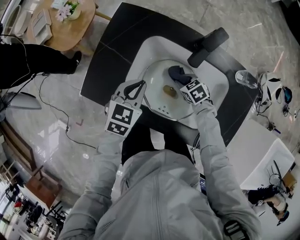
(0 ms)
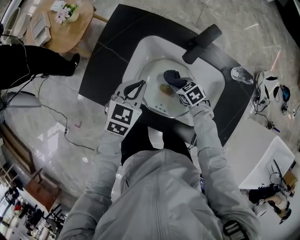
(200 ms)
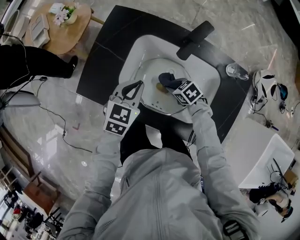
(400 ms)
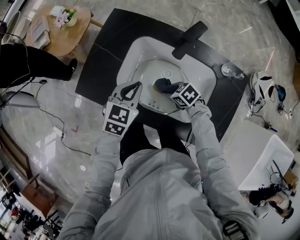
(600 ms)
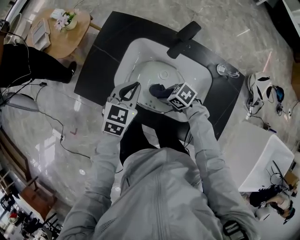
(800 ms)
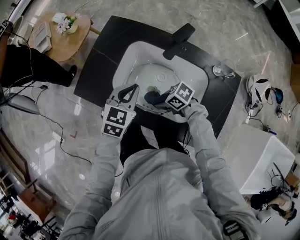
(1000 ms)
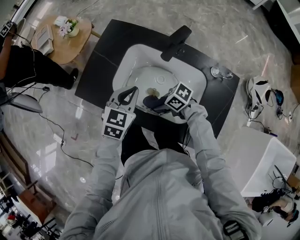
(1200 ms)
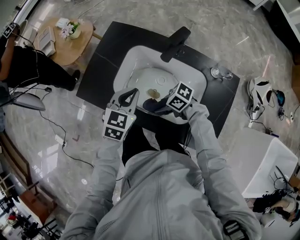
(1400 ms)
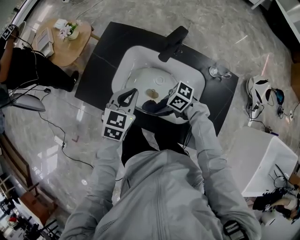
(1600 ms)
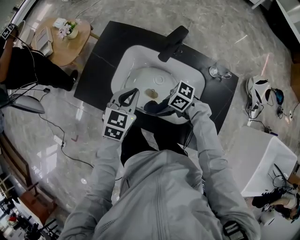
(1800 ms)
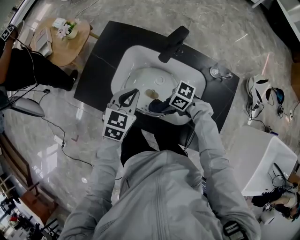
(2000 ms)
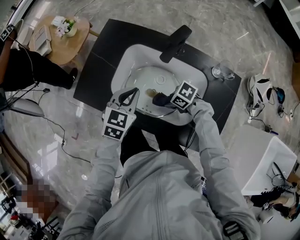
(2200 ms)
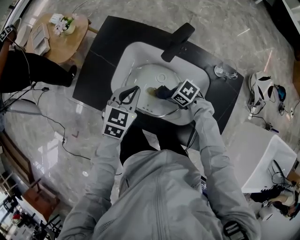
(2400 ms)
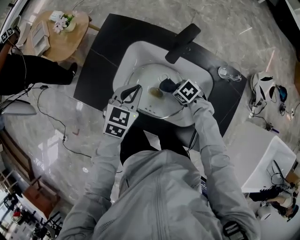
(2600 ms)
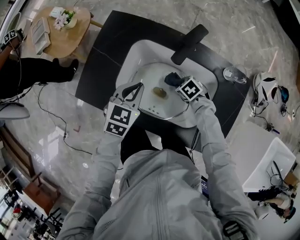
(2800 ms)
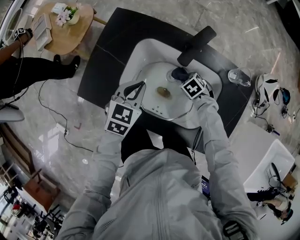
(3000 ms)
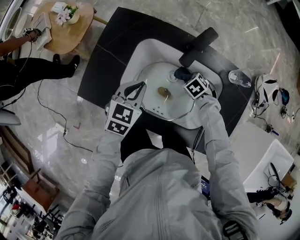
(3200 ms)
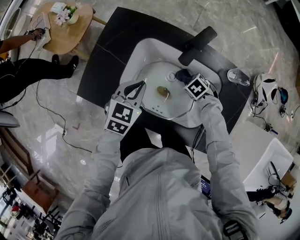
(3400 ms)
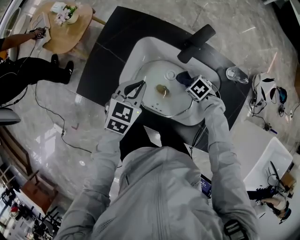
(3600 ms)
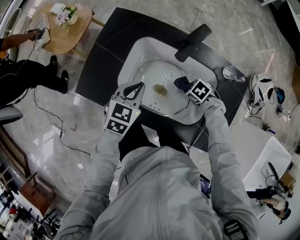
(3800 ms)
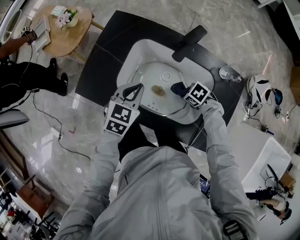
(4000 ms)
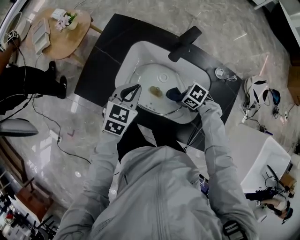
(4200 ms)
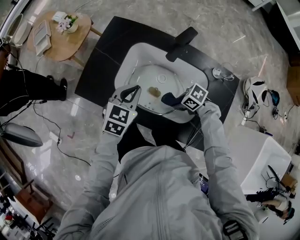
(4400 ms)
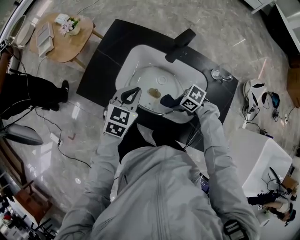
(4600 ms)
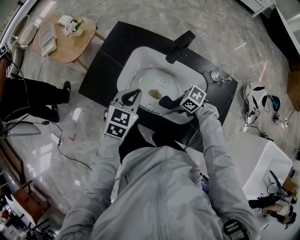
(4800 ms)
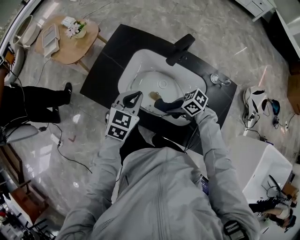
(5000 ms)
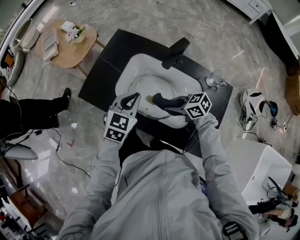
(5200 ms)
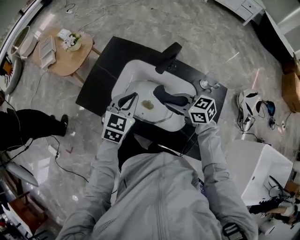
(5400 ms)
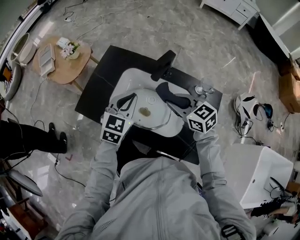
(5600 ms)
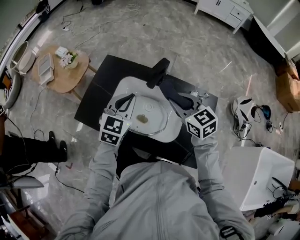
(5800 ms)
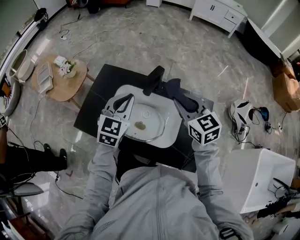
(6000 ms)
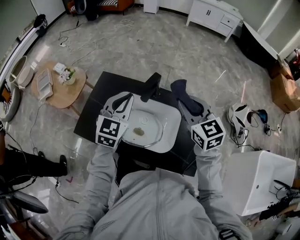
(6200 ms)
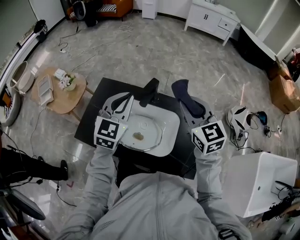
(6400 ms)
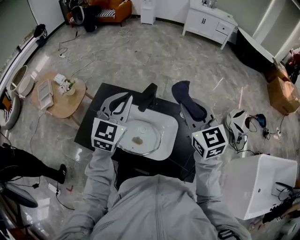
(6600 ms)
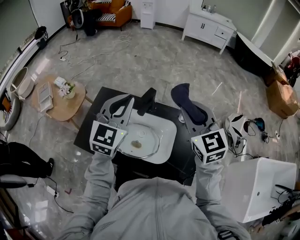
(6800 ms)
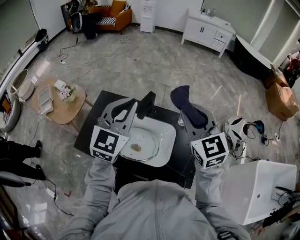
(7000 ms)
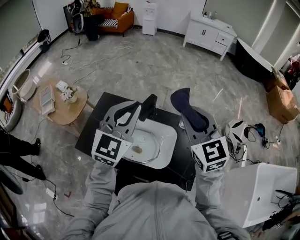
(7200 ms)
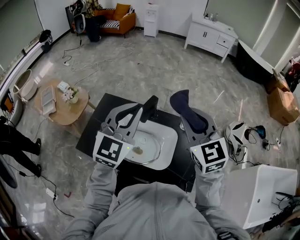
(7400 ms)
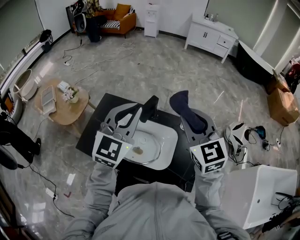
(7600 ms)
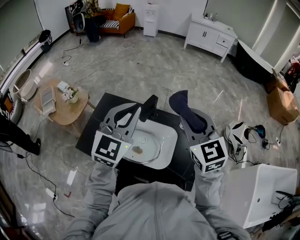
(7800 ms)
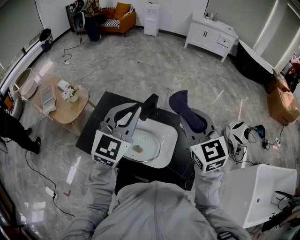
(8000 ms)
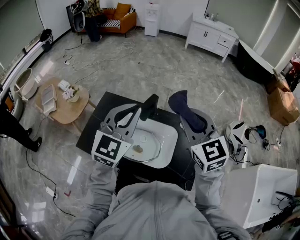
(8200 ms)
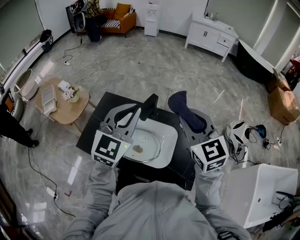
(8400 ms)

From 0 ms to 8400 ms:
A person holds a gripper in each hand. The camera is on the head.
From 0 ms to 1400 ms: The right gripper ends up approximately 20 cm from where it was, and changes its angle by about 40 degrees; the left gripper shifts by approximately 10 cm.
From 1400 ms to 2800 ms: The left gripper moves about 5 cm. The right gripper ends up approximately 20 cm from where it was, and angles its fingers downward, by approximately 40 degrees.
From 2800 ms to 4200 ms: The right gripper changes place by approximately 10 cm, and turns by some 20 degrees.
From 4200 ms to 5600 ms: The left gripper shifts some 10 cm upward. The right gripper goes about 25 cm upward, and points its fingers roughly 40 degrees further upward.
From 5600 ms to 7000 ms: The left gripper shifts about 20 cm upward, and turns by about 30 degrees; the right gripper is displaced upward and to the right by about 25 cm, and changes its angle by some 40 degrees.
From 7000 ms to 8400 ms: The grippers make only small movements.

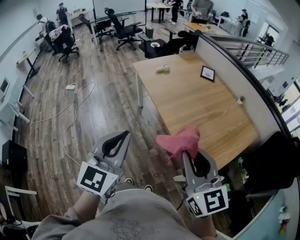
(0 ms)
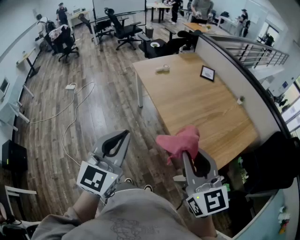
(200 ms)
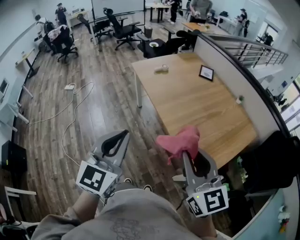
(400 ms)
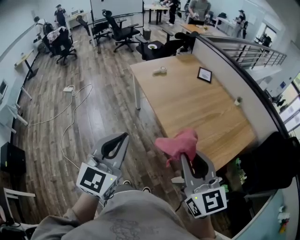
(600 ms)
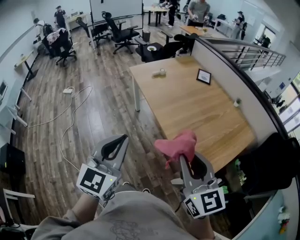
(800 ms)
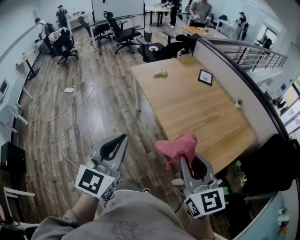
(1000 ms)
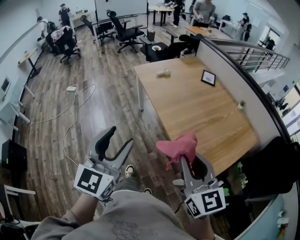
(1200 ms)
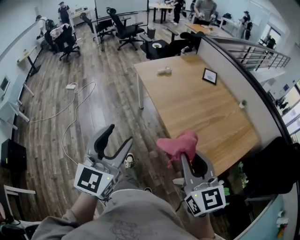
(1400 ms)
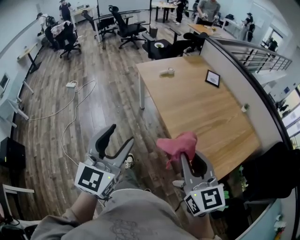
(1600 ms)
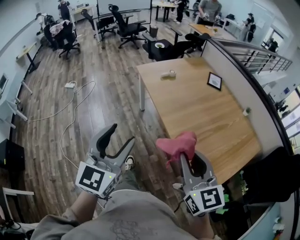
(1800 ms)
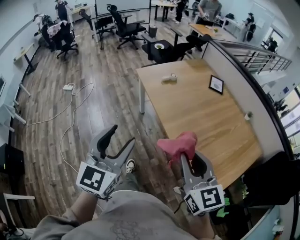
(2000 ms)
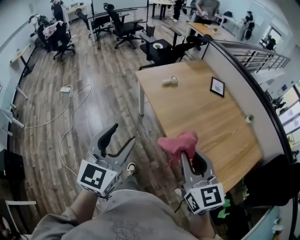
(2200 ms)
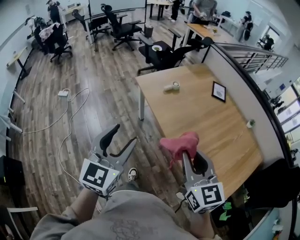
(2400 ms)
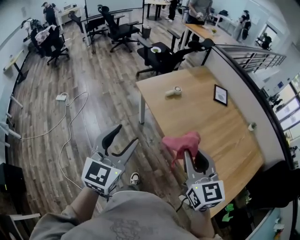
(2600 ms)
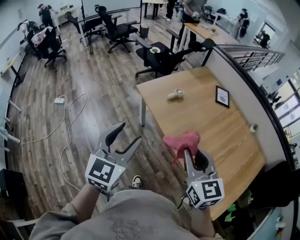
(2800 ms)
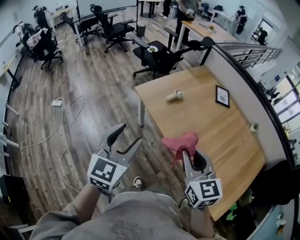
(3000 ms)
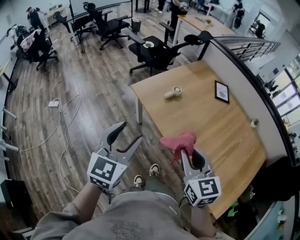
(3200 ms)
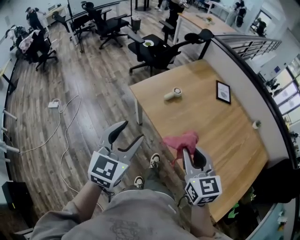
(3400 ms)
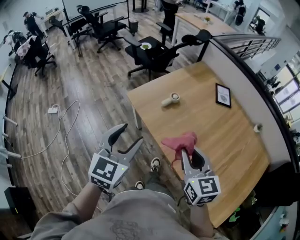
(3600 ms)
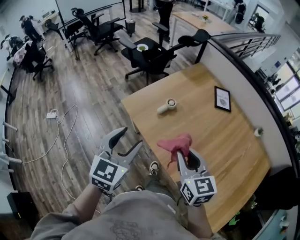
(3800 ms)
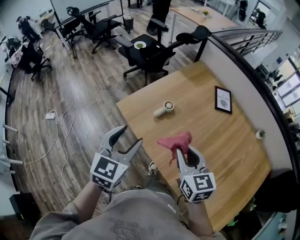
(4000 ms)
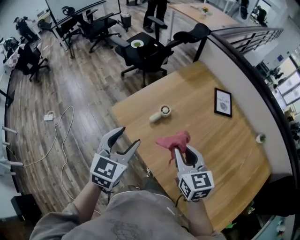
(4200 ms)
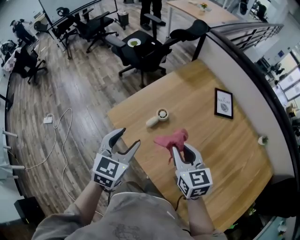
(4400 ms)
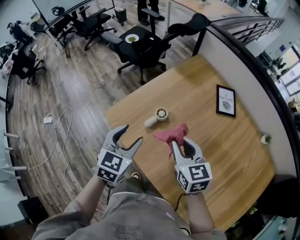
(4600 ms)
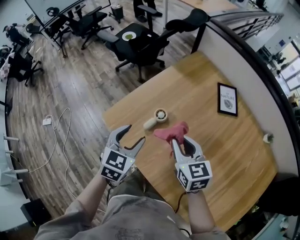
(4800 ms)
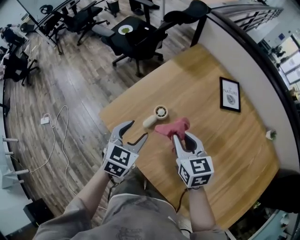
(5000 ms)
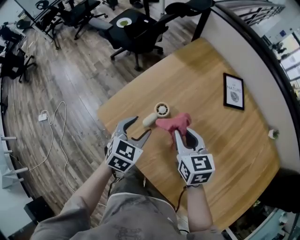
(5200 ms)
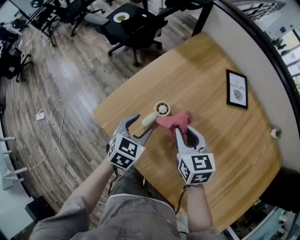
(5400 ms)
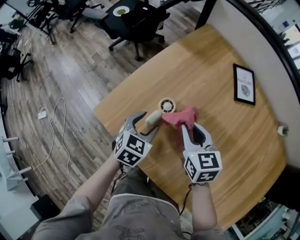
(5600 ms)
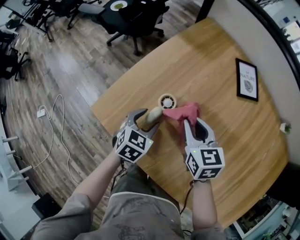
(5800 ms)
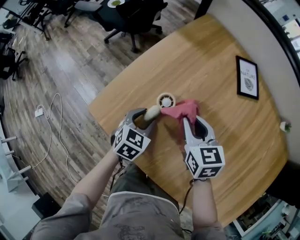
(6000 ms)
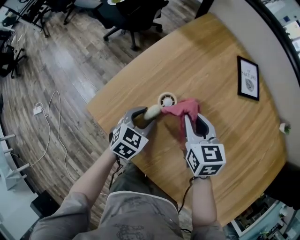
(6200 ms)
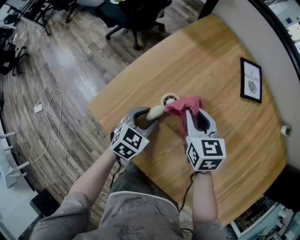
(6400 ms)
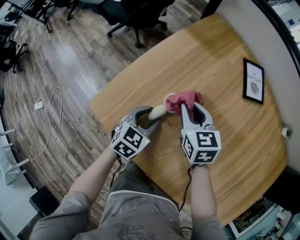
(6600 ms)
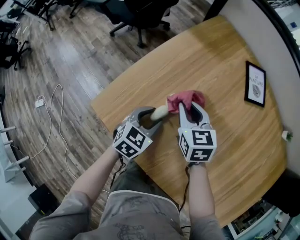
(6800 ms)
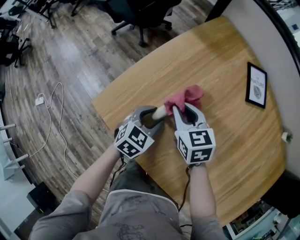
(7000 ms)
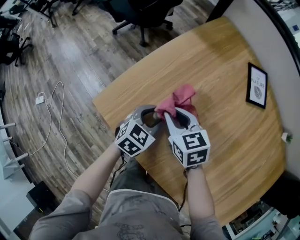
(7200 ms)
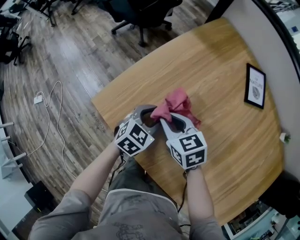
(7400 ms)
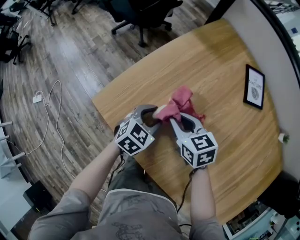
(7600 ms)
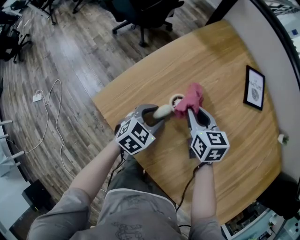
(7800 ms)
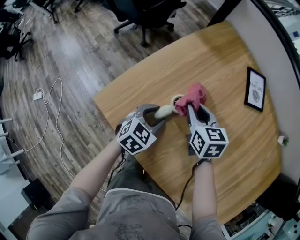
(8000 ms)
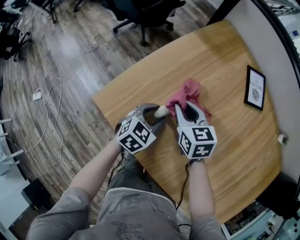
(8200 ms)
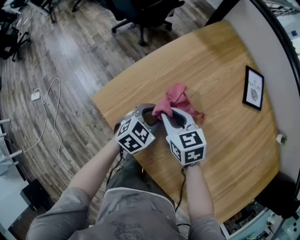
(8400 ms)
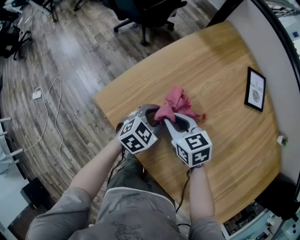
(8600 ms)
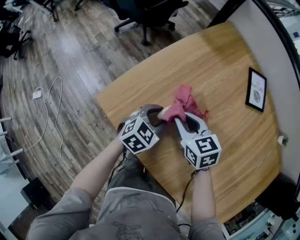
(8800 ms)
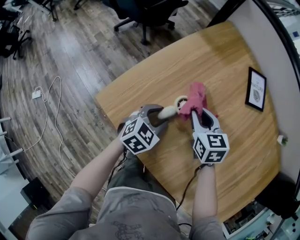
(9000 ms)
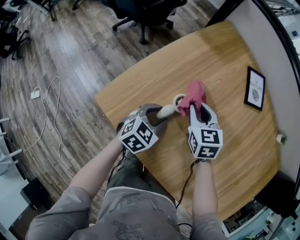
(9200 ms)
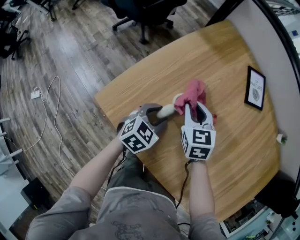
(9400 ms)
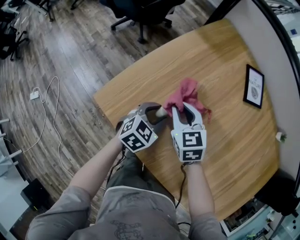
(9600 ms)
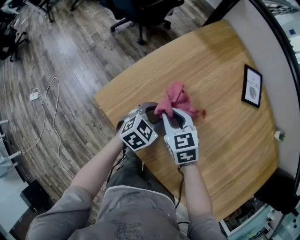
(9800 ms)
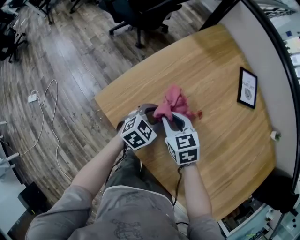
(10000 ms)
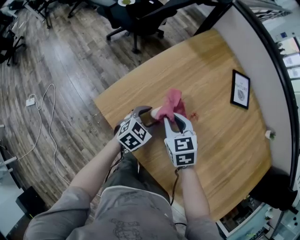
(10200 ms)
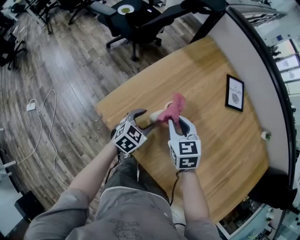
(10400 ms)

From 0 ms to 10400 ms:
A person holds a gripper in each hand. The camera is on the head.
From 0 ms to 1400 ms: The left gripper opens up.
From 1400 ms to 3000 ms: Both grippers are carried forward and to the left, some 40 cm.
From 3000 ms to 4400 ms: Both grippers move forward, approximately 35 cm.
From 4400 ms to 6000 ms: Both grippers travel together downward and forward, roughly 25 cm. The left gripper swivels about 20 degrees.
From 6000 ms to 7400 ms: The right gripper is displaced to the left and downward by roughly 10 cm, and rotates roughly 20 degrees.
From 7400 ms to 9000 ms: The right gripper moves left and right over roughly 10 cm, changing direction 2 times.
From 9000 ms to 10400 ms: The right gripper moves upward, roughly 5 cm.

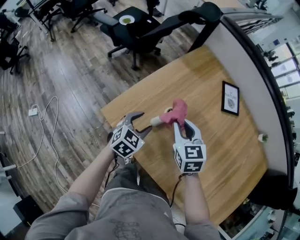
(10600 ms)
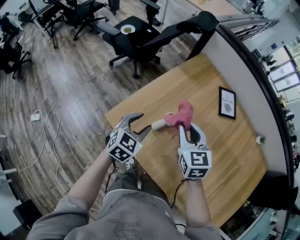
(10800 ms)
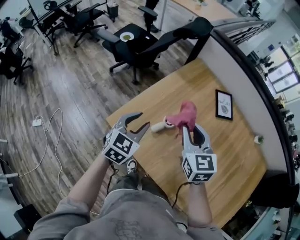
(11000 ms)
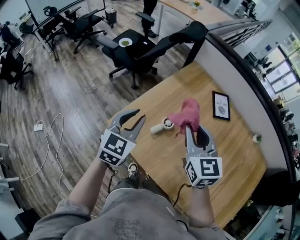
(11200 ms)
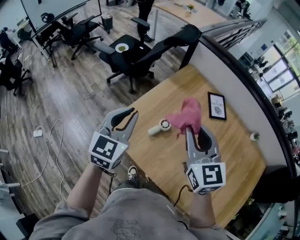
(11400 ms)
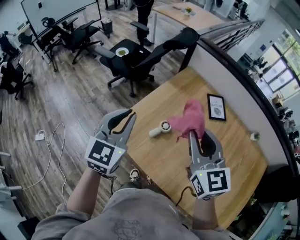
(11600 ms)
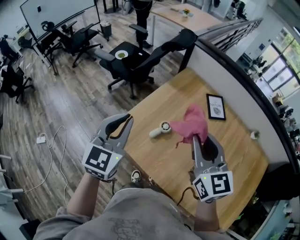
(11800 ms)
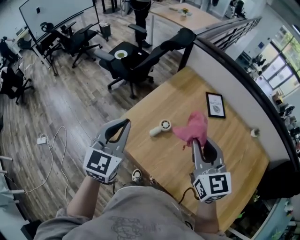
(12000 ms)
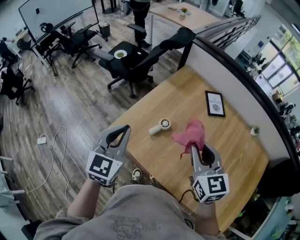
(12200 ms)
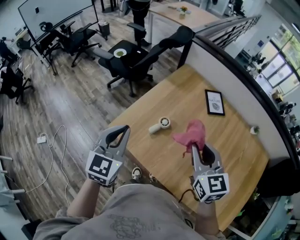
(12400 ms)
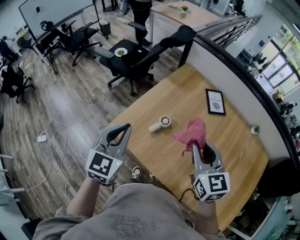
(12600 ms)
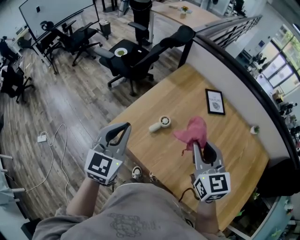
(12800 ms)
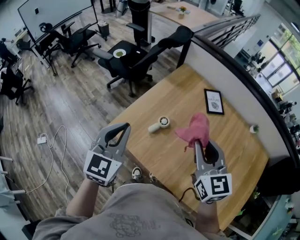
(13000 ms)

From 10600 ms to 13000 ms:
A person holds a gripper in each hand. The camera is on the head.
From 10600 ms to 11800 ms: The grippers both shift upward by approximately 30 cm. The left gripper changes its angle by some 30 degrees, and closes its fingers. Meanwhile the right gripper swivels some 30 degrees.
From 11800 ms to 13000 ms: The left gripper ends up approximately 5 cm from where it was. The right gripper shifts by about 5 cm.

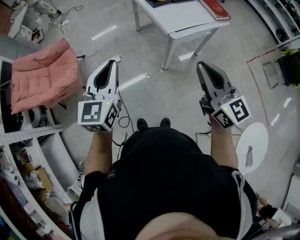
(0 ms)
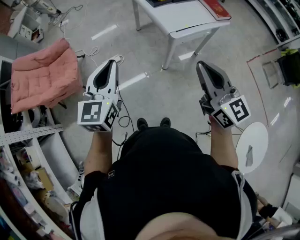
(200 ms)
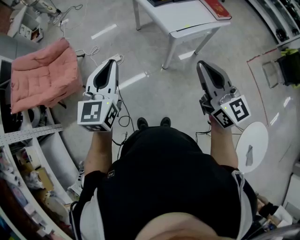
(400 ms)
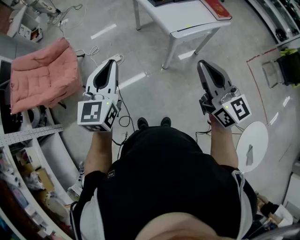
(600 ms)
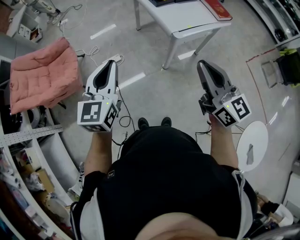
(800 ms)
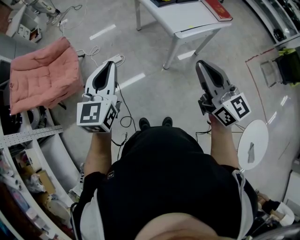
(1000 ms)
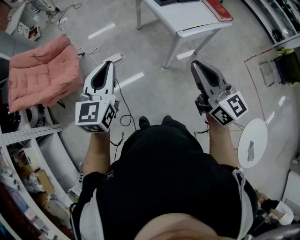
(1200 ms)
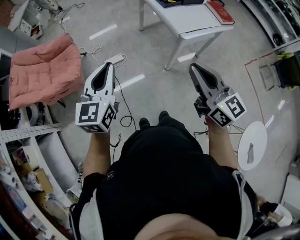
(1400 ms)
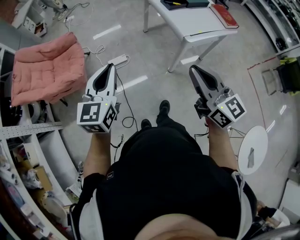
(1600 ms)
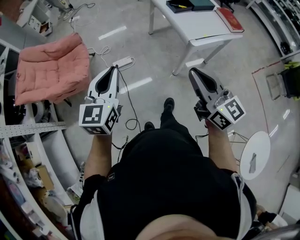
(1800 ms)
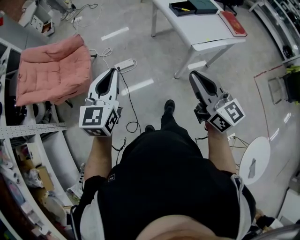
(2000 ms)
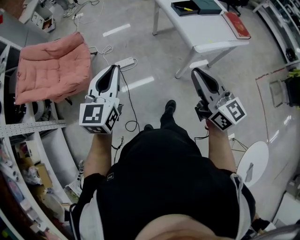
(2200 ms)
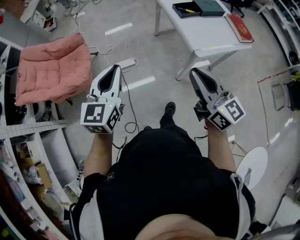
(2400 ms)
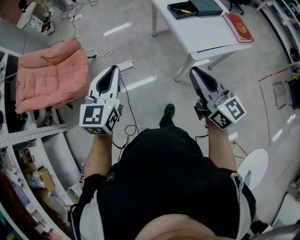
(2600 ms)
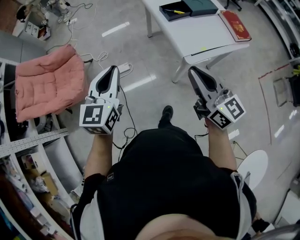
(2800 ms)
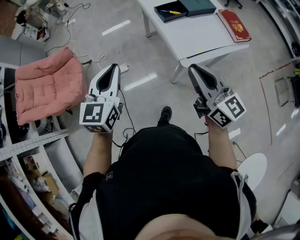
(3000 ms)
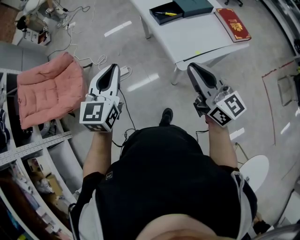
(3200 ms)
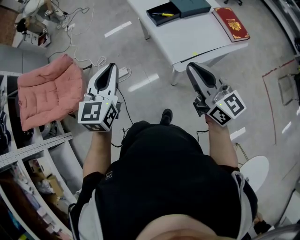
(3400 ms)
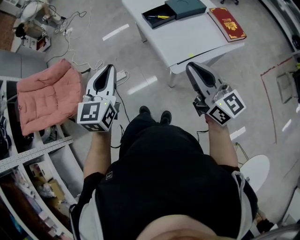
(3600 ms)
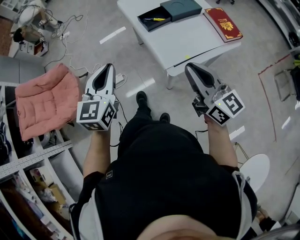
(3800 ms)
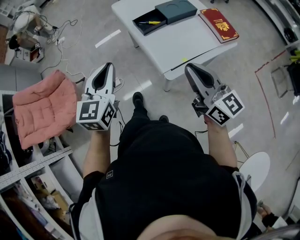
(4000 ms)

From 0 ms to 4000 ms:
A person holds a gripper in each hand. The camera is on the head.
From 0 ms to 1400 ms: The two grippers go some 10 cm to the left.
From 1400 ms to 2600 ms: Both grippers travel together forward and to the right, about 15 cm.
From 2600 ms to 4000 ms: Both grippers travel together to the right and forward, roughly 25 cm.
